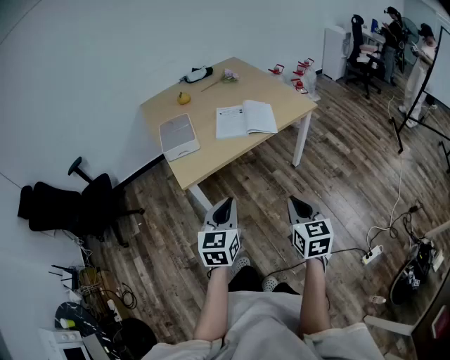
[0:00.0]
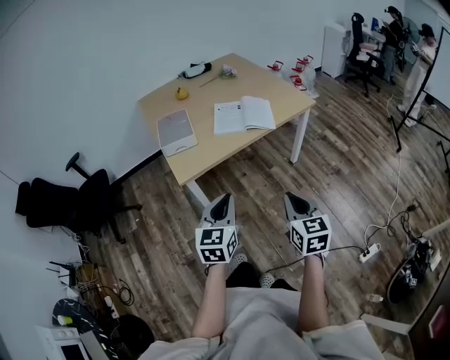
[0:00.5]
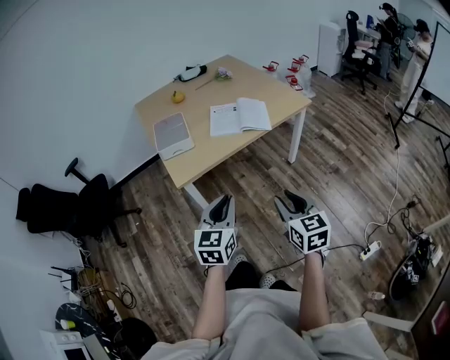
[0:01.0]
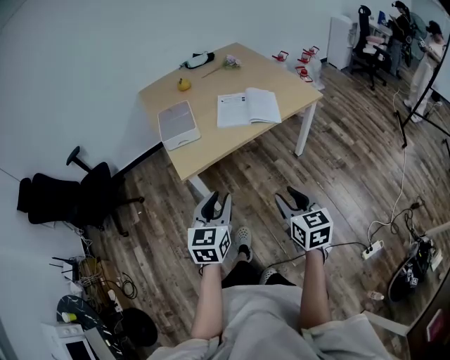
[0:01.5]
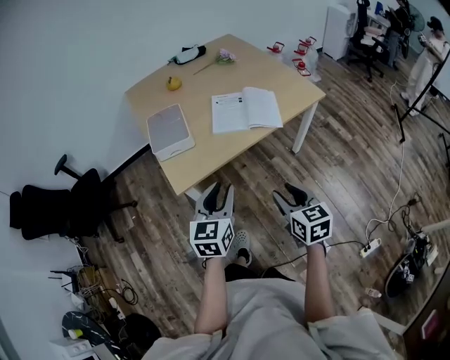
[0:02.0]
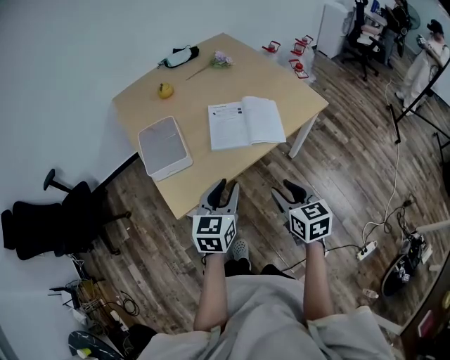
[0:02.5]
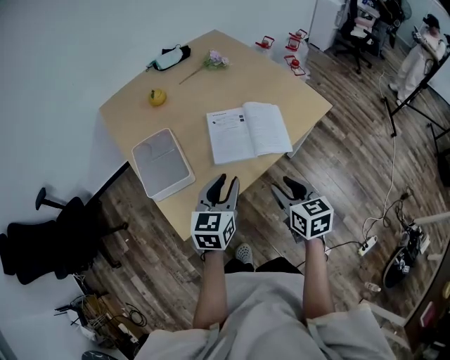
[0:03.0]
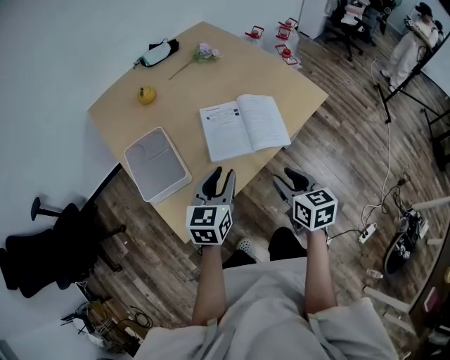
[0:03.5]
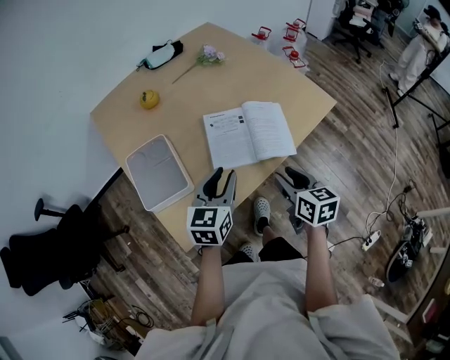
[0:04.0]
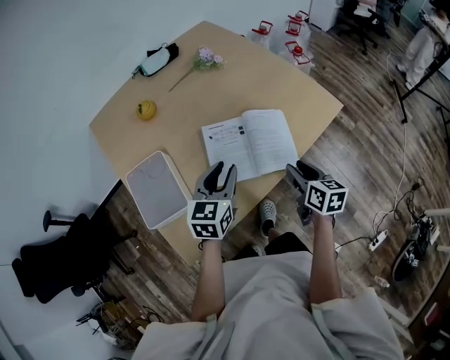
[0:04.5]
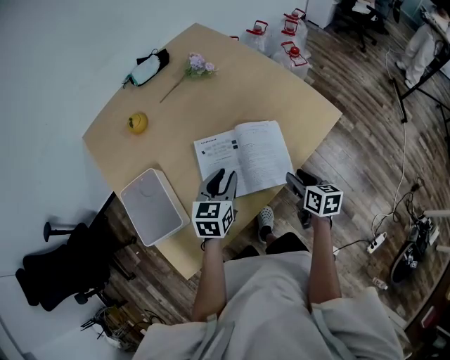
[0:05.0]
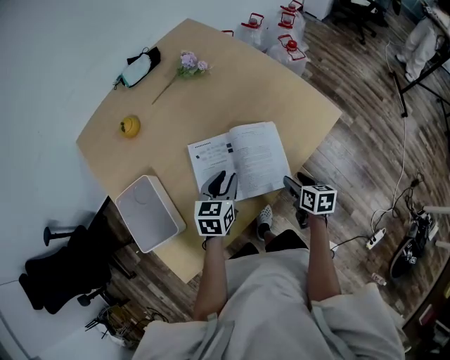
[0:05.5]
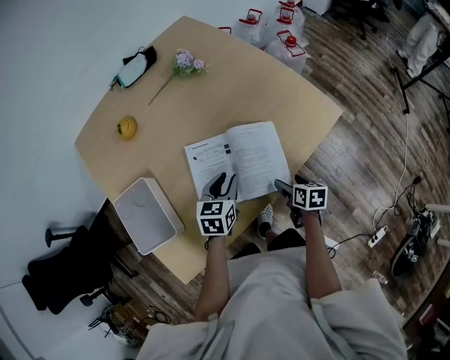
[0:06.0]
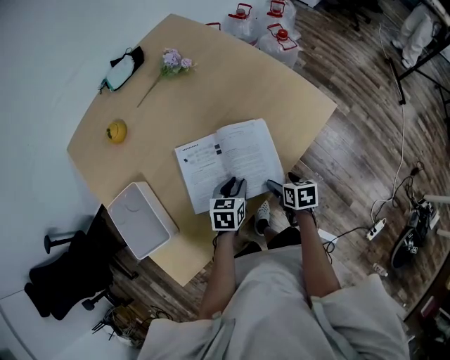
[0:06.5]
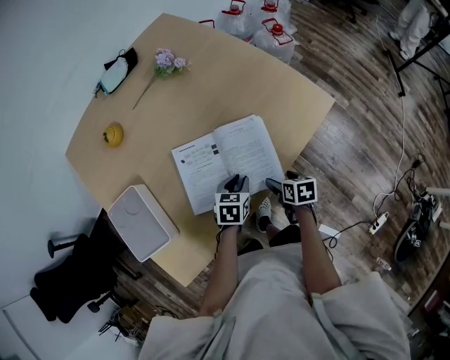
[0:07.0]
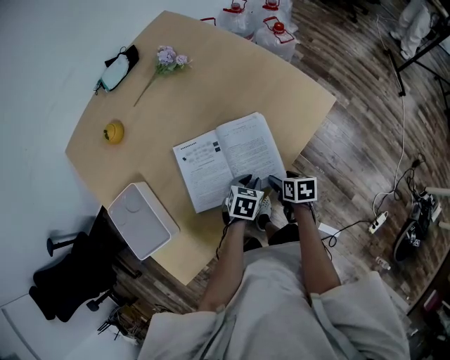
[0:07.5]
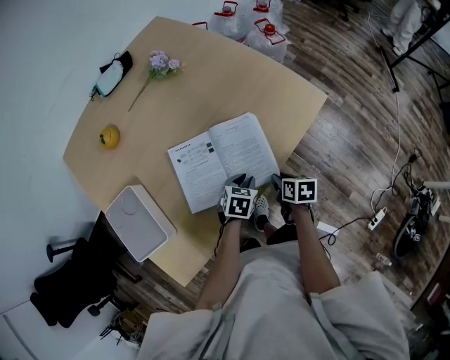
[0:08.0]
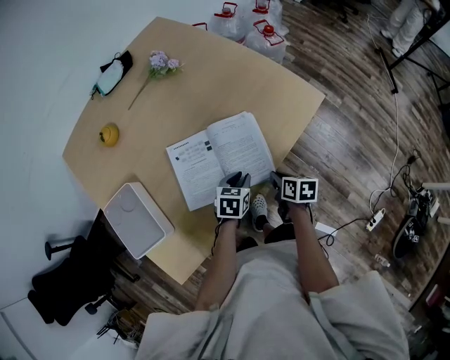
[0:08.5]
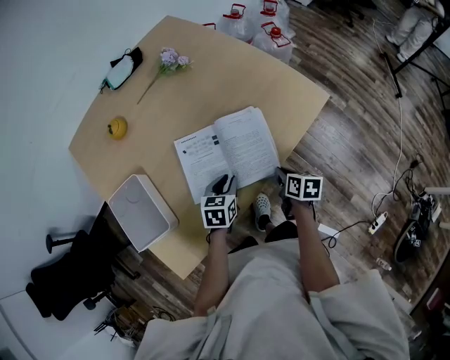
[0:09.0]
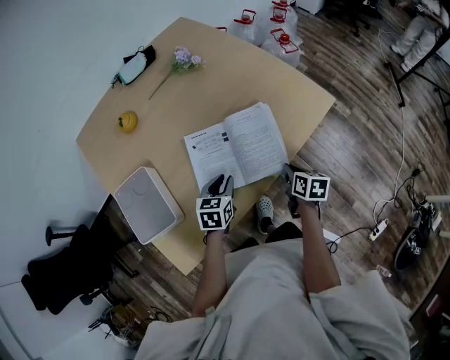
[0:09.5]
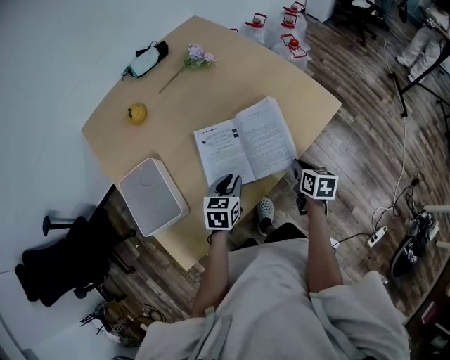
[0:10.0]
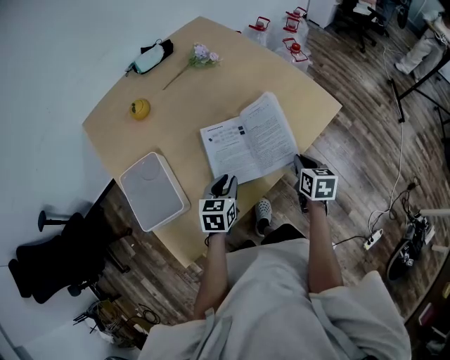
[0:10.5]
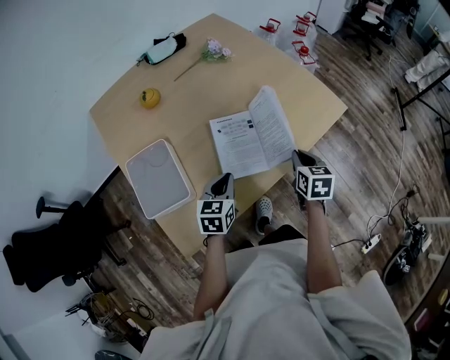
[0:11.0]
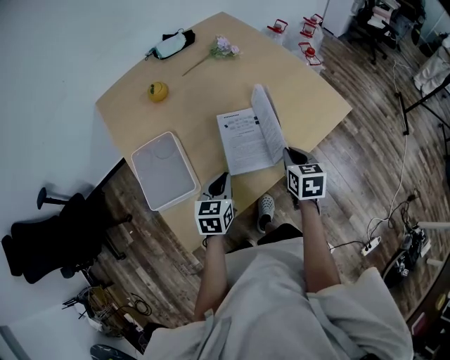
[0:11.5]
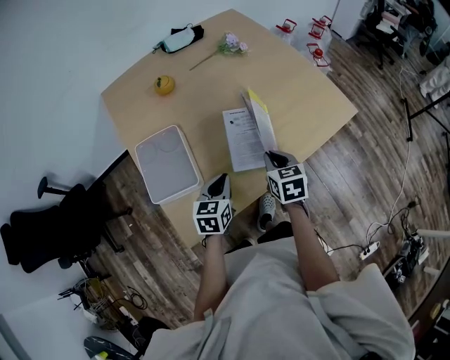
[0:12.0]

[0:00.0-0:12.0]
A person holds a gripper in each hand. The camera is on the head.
0:00.0 to 0:02.0: Both grippers move forward, roughly 15 cm. The left gripper opens up; the right gripper opens its fingers.
0:02.0 to 0:04.0: The grippers both shift forward by approximately 30 cm.
0:04.0 to 0:06.0: The right gripper goes about 30 cm downward, forward and to the right, turns by approximately 30 degrees, and opens up. Meanwhile the left gripper shifts about 25 cm forward, downward and to the right.
0:06.0 to 0:08.0: The left gripper is displaced downward and to the right by roughly 15 cm, and changes its angle by approximately 30 degrees. Meanwhile the right gripper closes its fingers.
0:08.0 to 0:10.0: The left gripper goes about 15 cm to the left, upward and backward, and turns by approximately 20 degrees, while the right gripper heads upward, covering some 10 cm.
0:10.0 to 0:12.0: The right gripper is displaced to the left by approximately 20 cm, and turns by some 30 degrees. Meanwhile the left gripper goes roughly 15 cm to the left and backward.

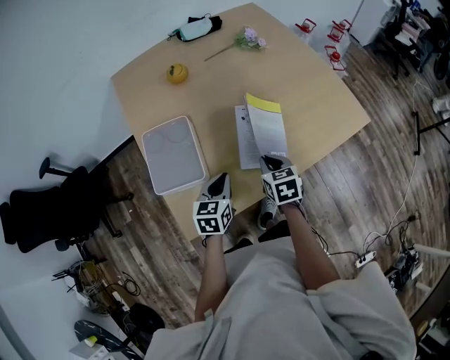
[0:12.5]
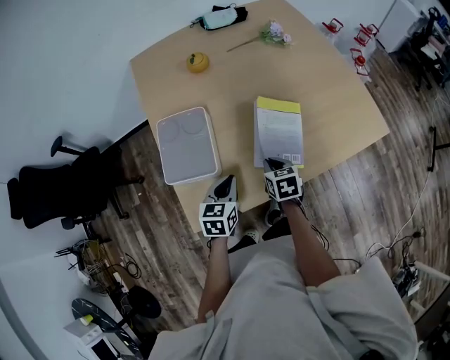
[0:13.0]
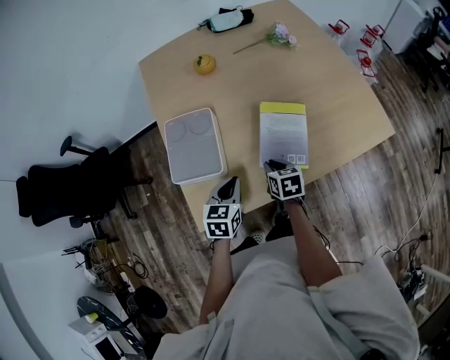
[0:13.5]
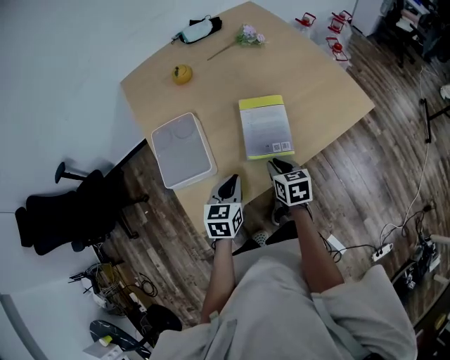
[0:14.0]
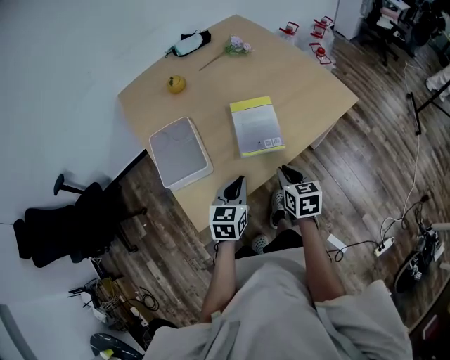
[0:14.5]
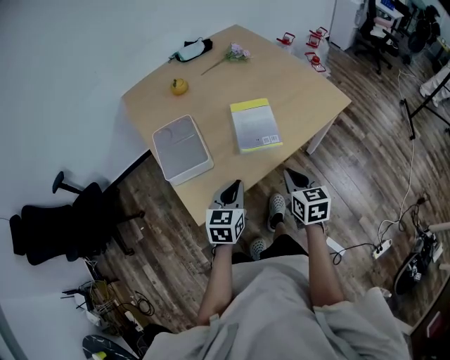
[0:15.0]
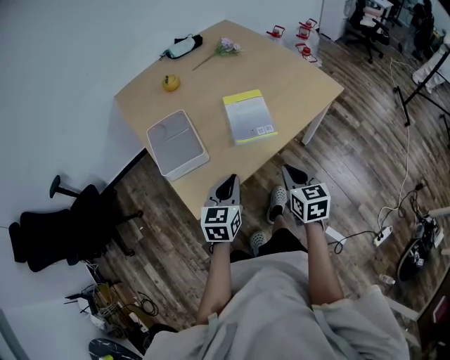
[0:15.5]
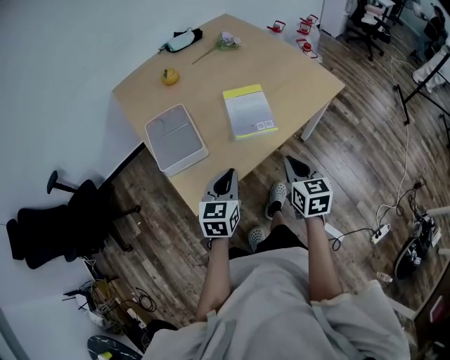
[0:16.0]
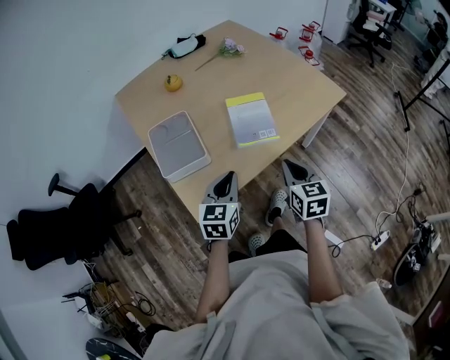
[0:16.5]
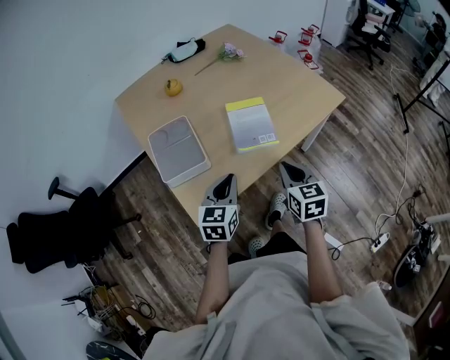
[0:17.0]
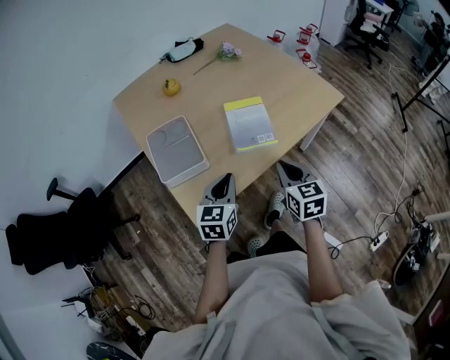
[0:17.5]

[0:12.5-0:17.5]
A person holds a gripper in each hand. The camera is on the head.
0:12.5 to 0:15.0: The left gripper shifts some 15 cm backward and upward; the right gripper goes approximately 20 cm backward.
0:15.0 to 0:17.5: The grippers move only a little.

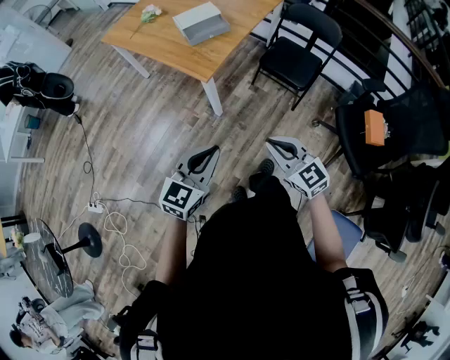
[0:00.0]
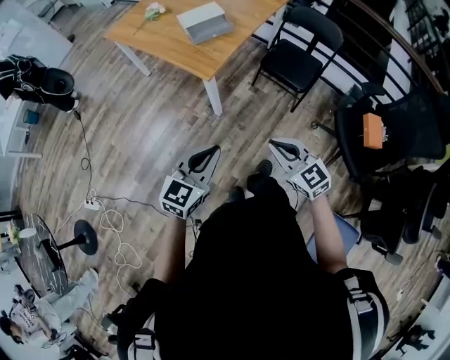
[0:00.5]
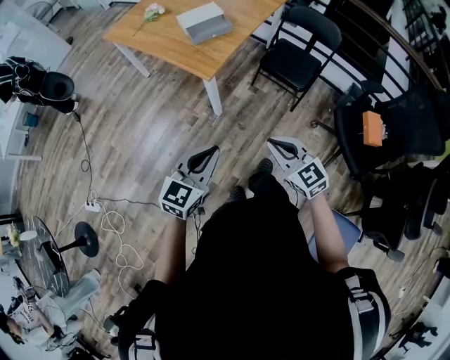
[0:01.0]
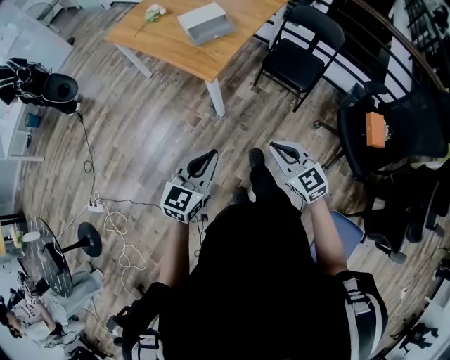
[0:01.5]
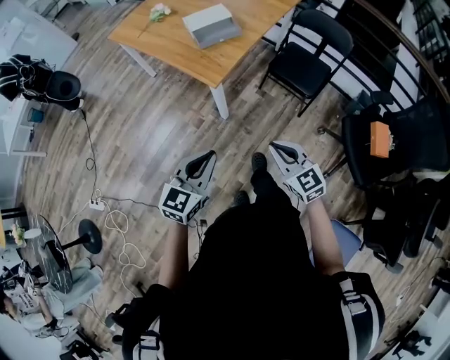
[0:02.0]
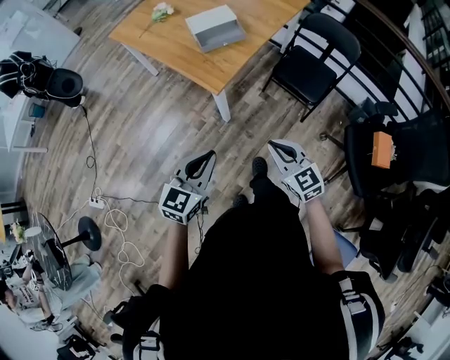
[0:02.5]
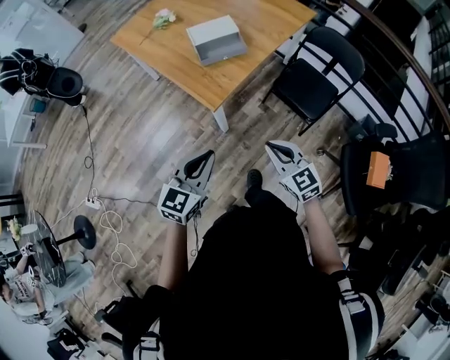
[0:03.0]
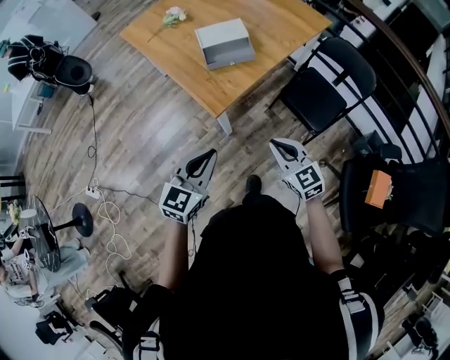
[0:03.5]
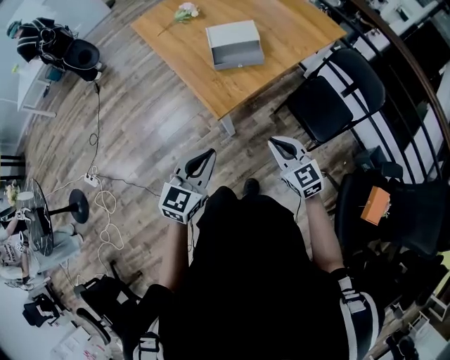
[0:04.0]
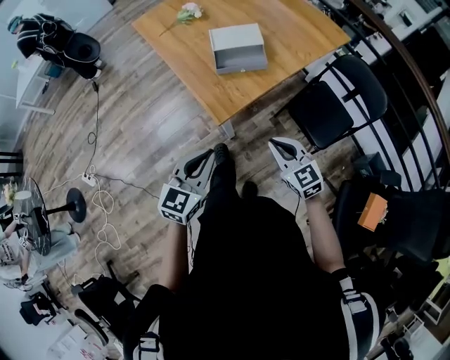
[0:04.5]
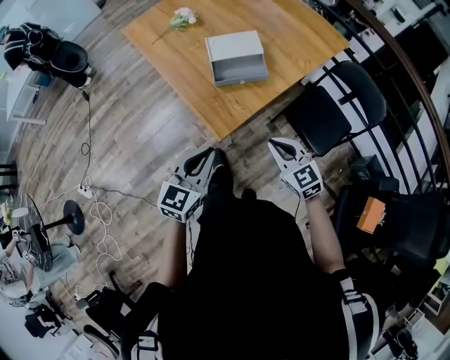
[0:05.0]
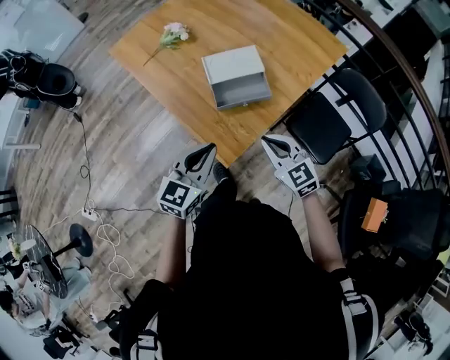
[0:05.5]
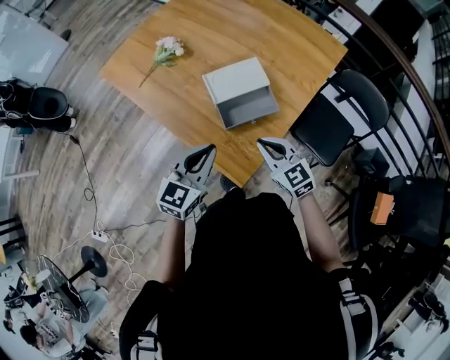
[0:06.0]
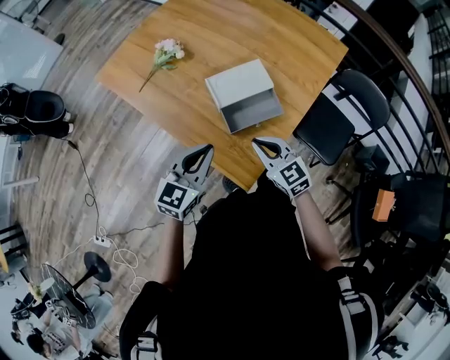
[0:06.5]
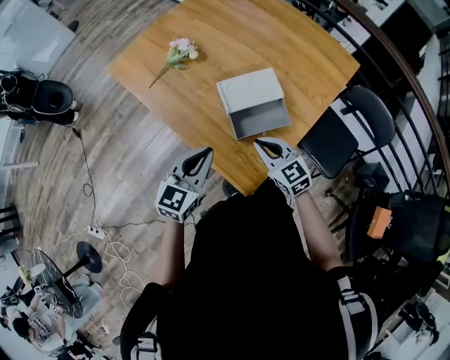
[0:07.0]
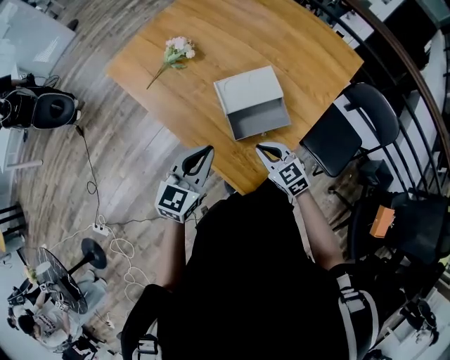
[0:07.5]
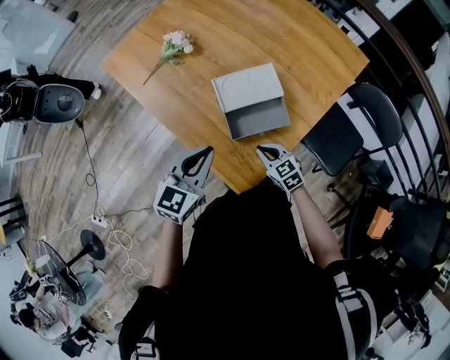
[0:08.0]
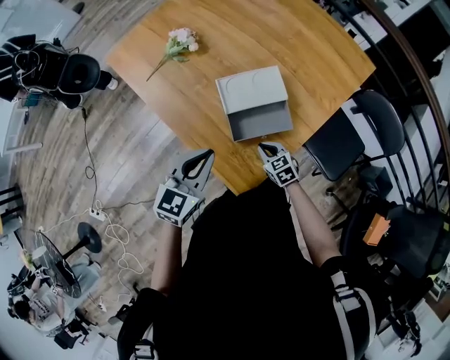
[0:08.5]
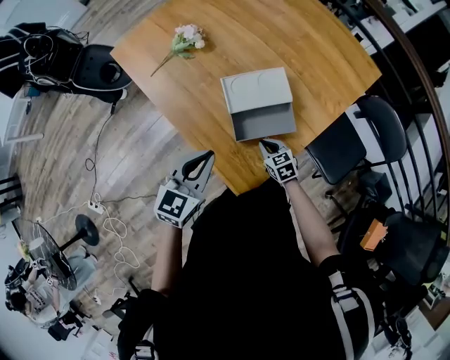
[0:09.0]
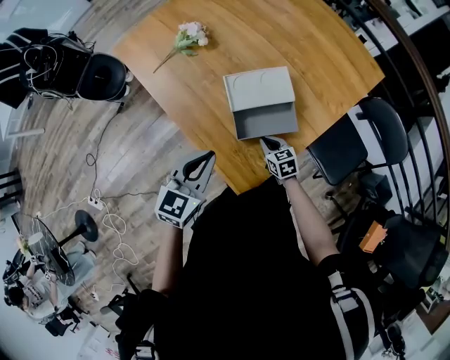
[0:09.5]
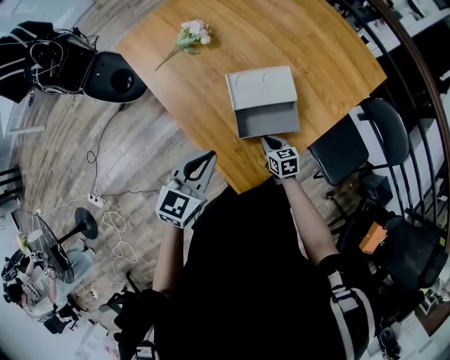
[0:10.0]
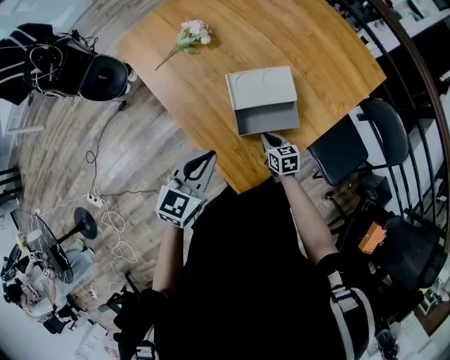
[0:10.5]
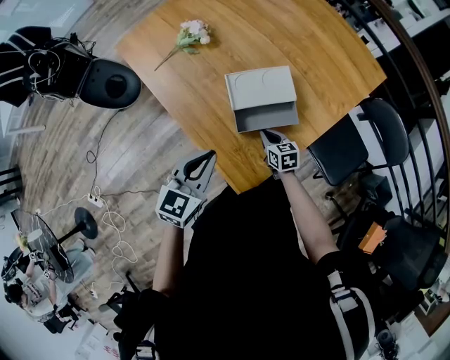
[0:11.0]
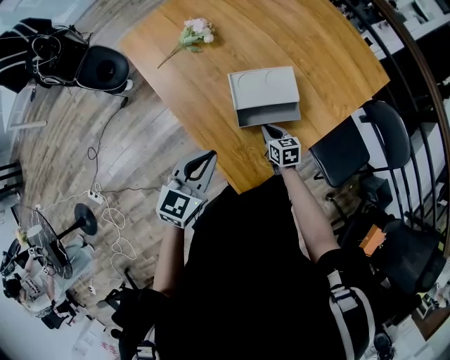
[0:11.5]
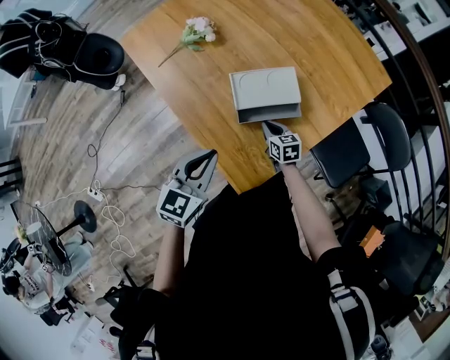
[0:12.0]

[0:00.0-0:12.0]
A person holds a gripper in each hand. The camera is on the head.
0:00.0 to 0:02.0: The left gripper shifts by approximately 5 cm. The right gripper shifts roughly 5 cm forward.
0:02.0 to 0:04.0: The right gripper heads forward, covering about 30 cm. Meanwhile the left gripper travels forward and to the right by about 25 cm.
0:04.0 to 0:06.0: The right gripper is displaced forward and to the left by about 40 cm; the left gripper shifts roughly 40 cm forward.
0:06.0 to 0:08.0: The left gripper heads forward, covering about 5 cm, while the right gripper shifts some 15 cm downward.
0:08.0 to 0:10.0: The right gripper heads downward and forward, covering approximately 10 cm.
0:10.0 to 0:12.0: The right gripper travels forward by some 5 cm.
